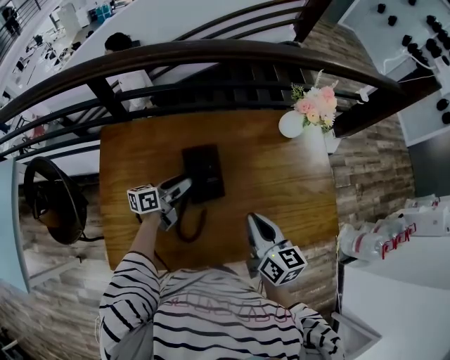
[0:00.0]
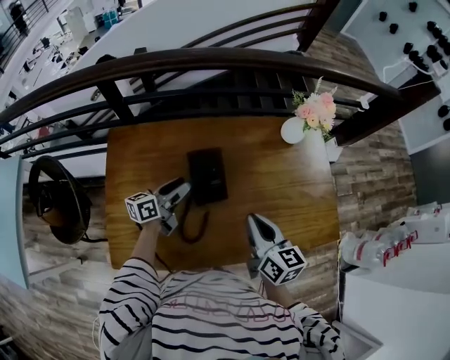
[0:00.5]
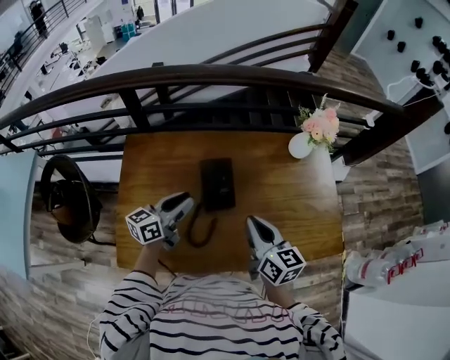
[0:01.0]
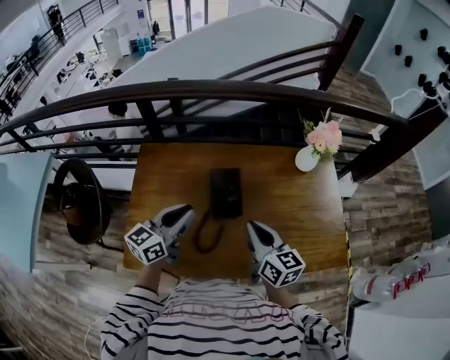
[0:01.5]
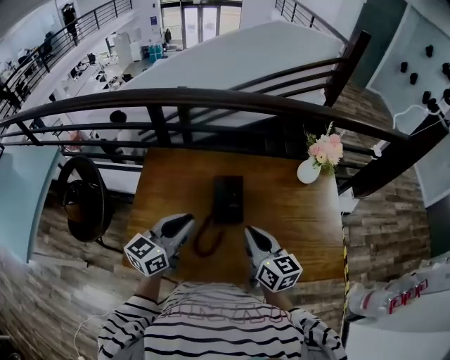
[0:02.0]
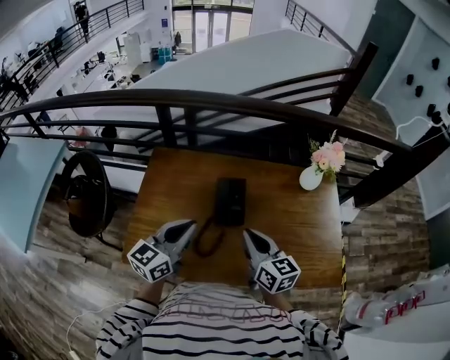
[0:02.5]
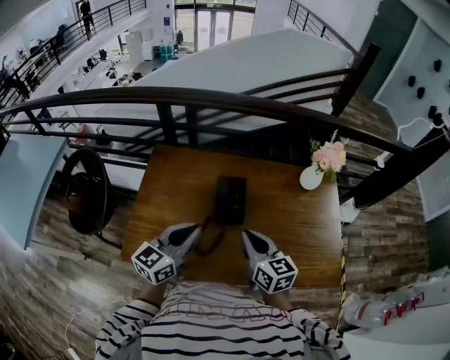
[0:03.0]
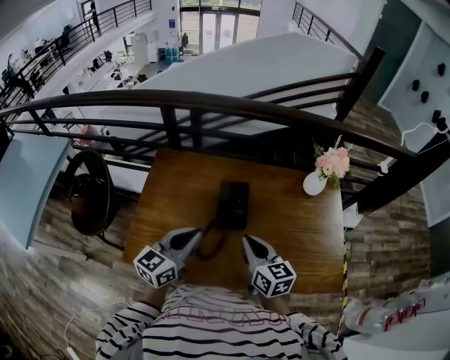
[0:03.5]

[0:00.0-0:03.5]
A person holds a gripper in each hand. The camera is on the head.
0:00.0 to 0:02.0: The left gripper moves upward and backward, roughly 30 cm, turns by approximately 40 degrees, and closes its fingers, while the right gripper travels upward and backward by approximately 10 cm.
0:02.0 to 0:03.5: The grippers make only small movements.

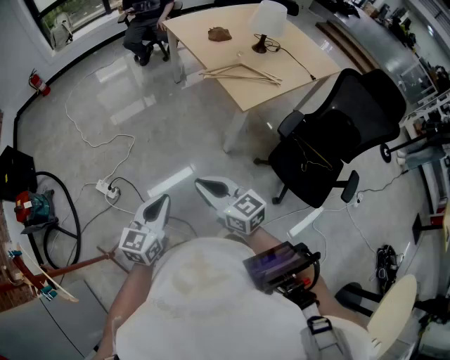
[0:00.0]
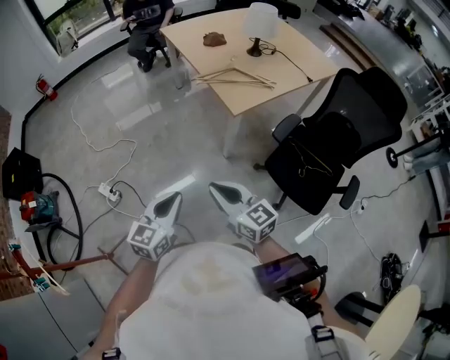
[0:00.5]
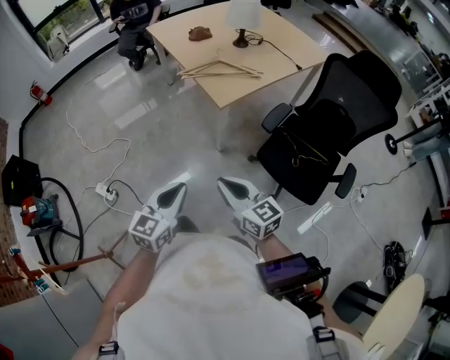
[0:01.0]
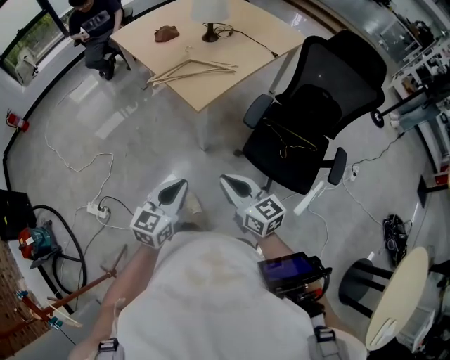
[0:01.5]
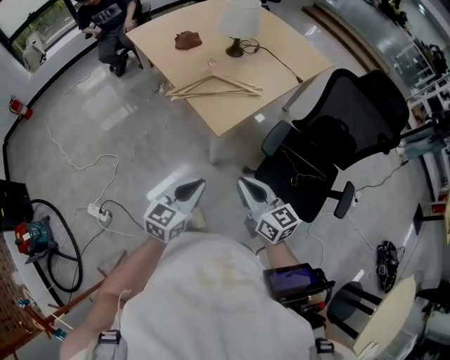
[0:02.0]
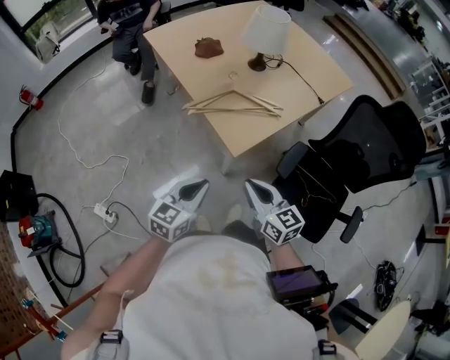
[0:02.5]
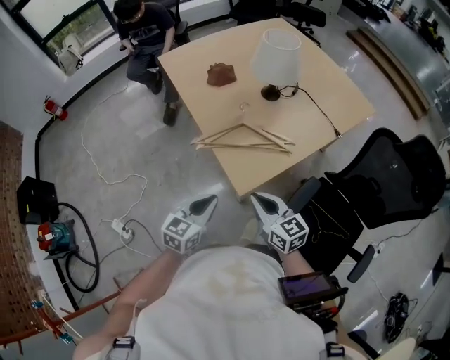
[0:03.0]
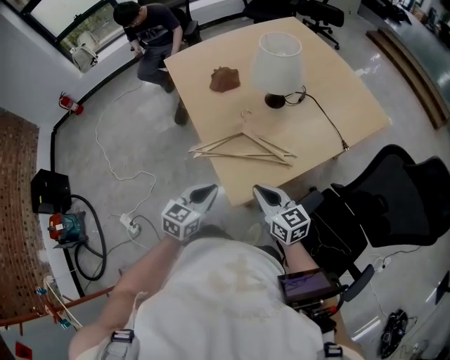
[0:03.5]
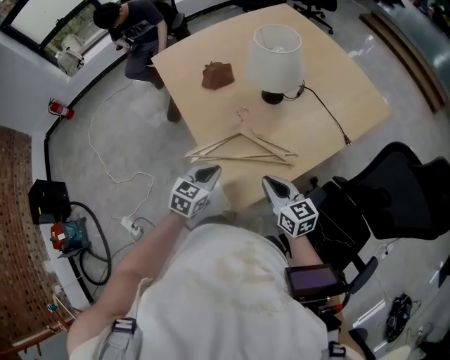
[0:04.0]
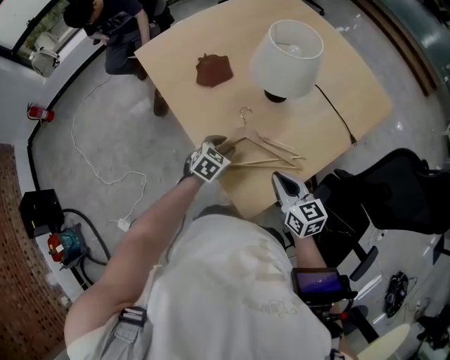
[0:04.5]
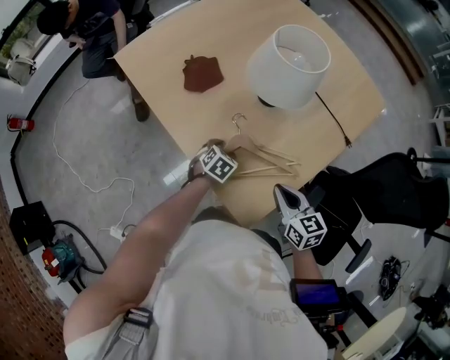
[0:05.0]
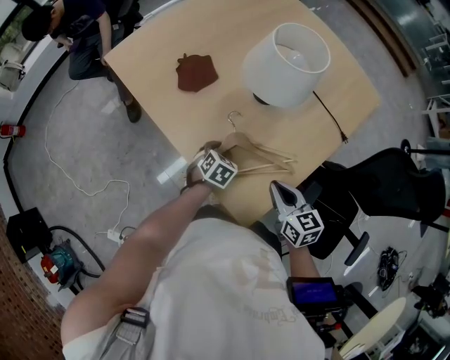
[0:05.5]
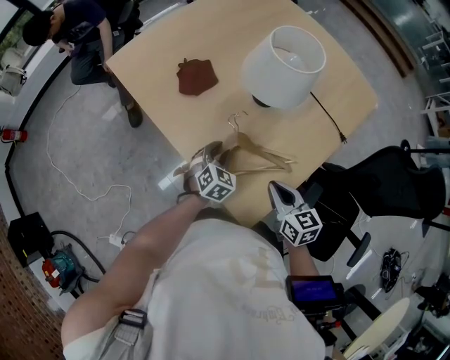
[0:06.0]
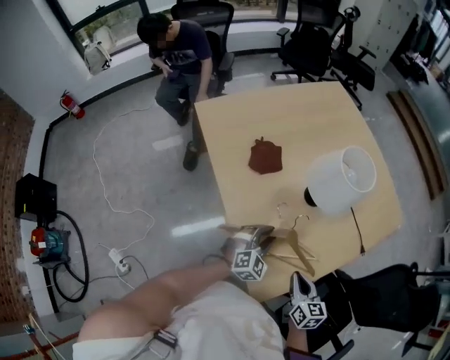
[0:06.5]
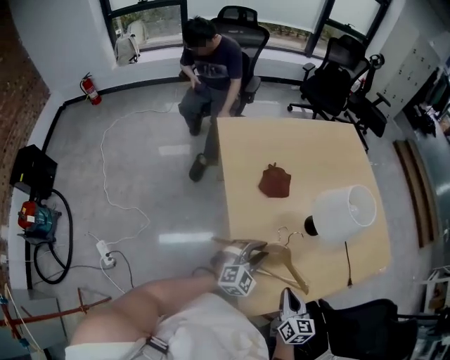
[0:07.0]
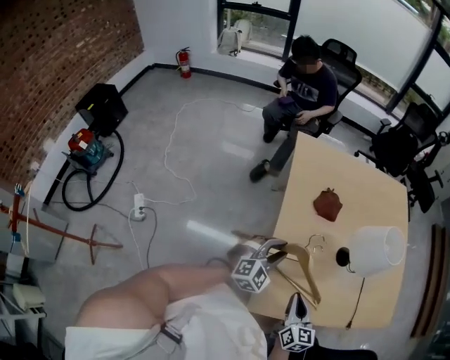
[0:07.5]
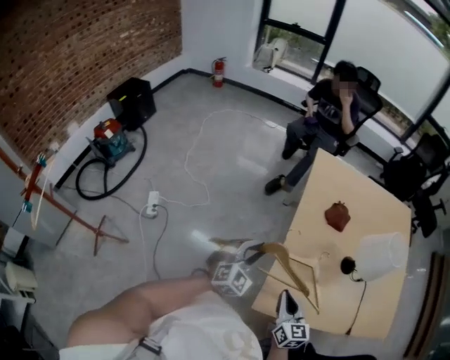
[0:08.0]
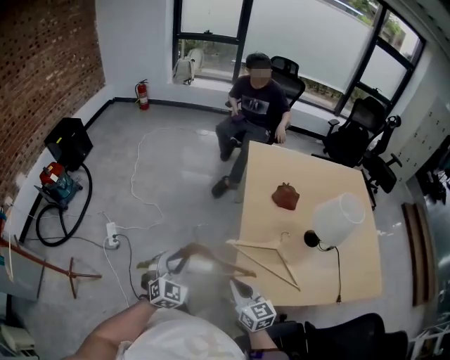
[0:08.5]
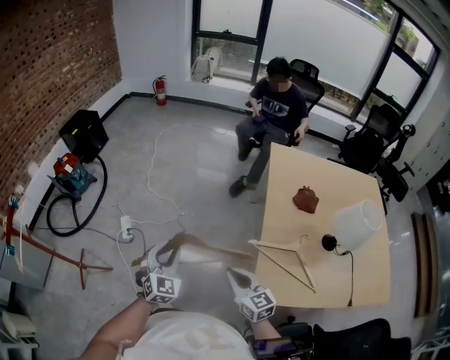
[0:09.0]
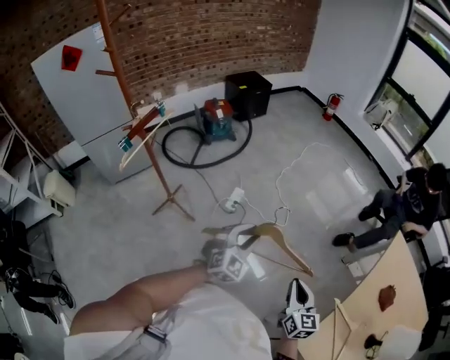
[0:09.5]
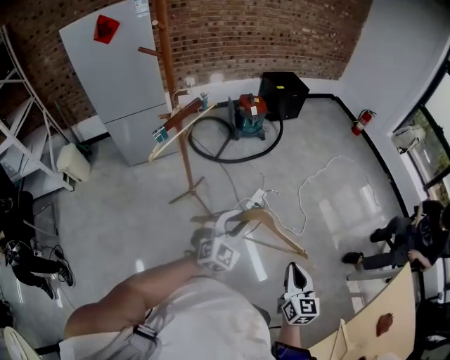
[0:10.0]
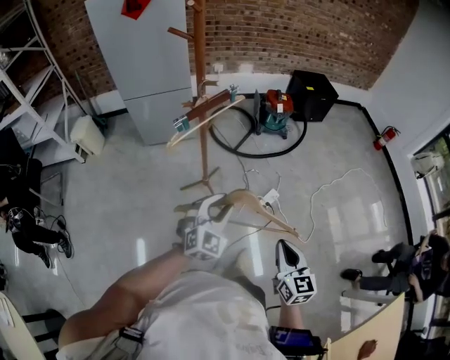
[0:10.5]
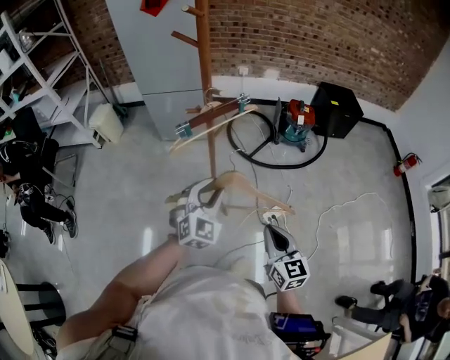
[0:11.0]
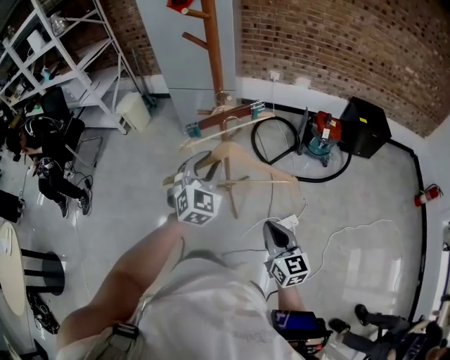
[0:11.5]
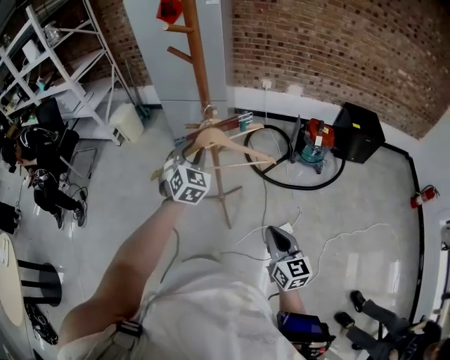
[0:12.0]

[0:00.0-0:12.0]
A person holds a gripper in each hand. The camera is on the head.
0:00.0 to 0:02.0: Both grippers travel together to the right and forward, about 30 cm. The left gripper rotates some 20 degrees. Meanwhile the right gripper swivels about 20 degrees.
0:02.0 to 0:04.0: The two grippers go some 35 cm forward. The left gripper turns by approximately 20 degrees.
0:04.0 to 0:06.0: The left gripper moves forward and downward, roughly 20 cm, swivels roughly 30 degrees, and opens its fingers; the right gripper goes some 5 cm forward, and turns by about 20 degrees.
0:06.0 to 0:08.0: The right gripper ends up about 15 cm from where it was, and changes its angle by about 50 degrees. Meanwhile the left gripper changes place by some 30 cm, and changes its angle by some 40 degrees.
0:08.0 to 0:10.0: The two grippers travel together, approximately 60 cm. The right gripper swivels some 50 degrees. The left gripper rotates roughly 60 degrees.
0:10.0 to 0:12.0: The left gripper moves roughly 40 cm, and turns by roughly 60 degrees. The right gripper changes place by approximately 35 cm, and turns by roughly 50 degrees.

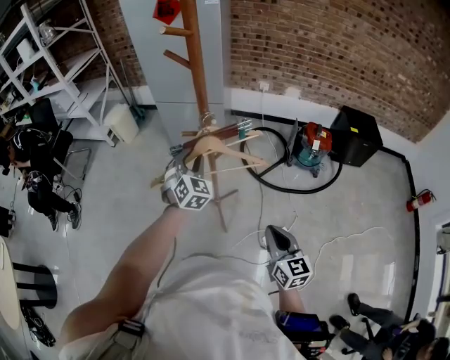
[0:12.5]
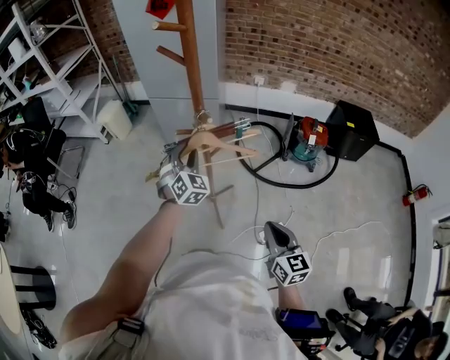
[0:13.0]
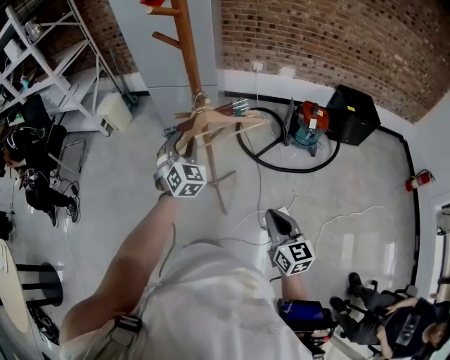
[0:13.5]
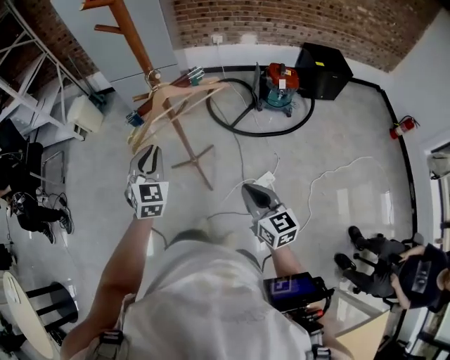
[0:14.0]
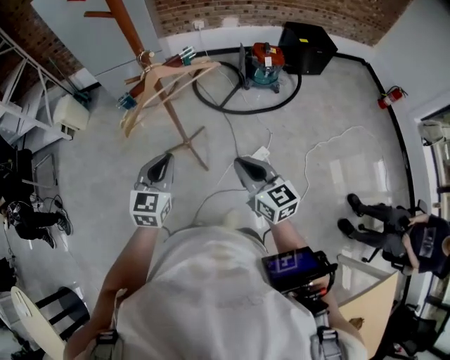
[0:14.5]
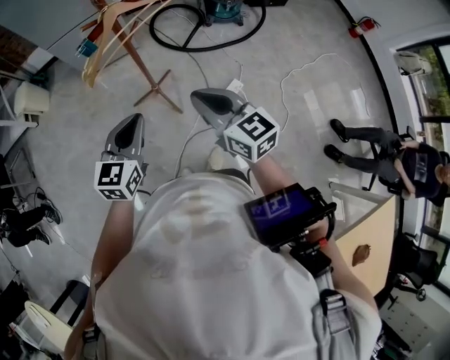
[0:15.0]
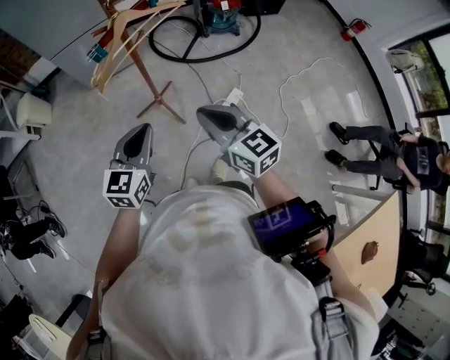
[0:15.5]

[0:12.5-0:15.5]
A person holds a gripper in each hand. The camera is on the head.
0:12.5 to 0:14.0: The left gripper travels backward by approximately 10 cm.
0:14.0 to 0:15.5: The right gripper goes roughly 15 cm to the left and backward, while the left gripper goes about 15 cm backward, and rotates some 40 degrees.

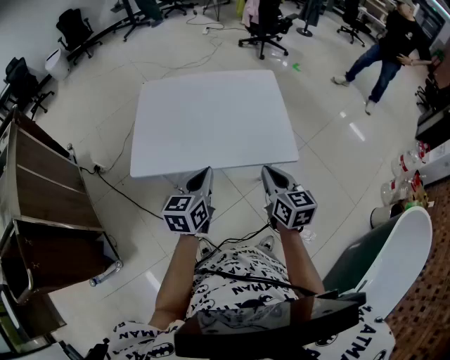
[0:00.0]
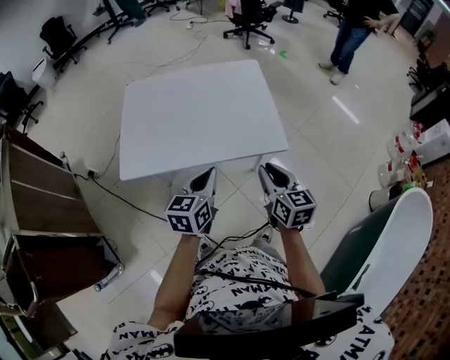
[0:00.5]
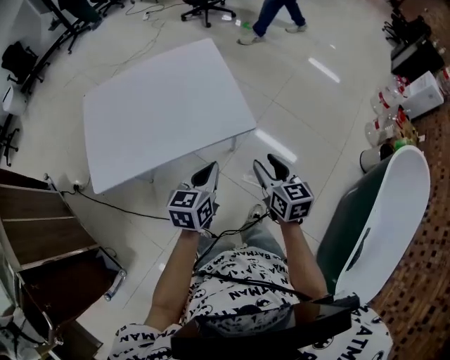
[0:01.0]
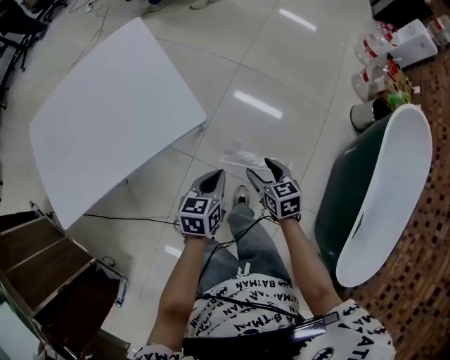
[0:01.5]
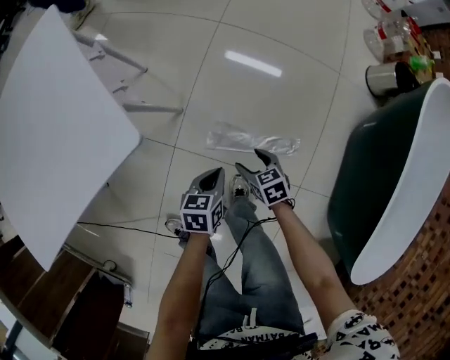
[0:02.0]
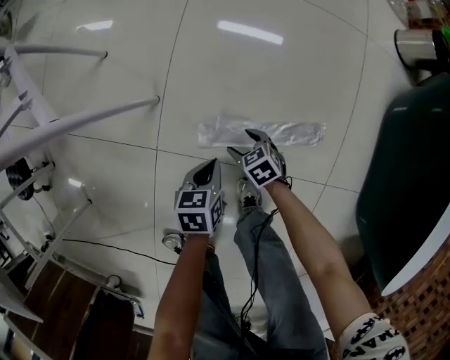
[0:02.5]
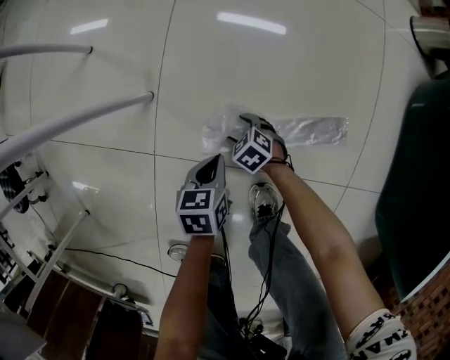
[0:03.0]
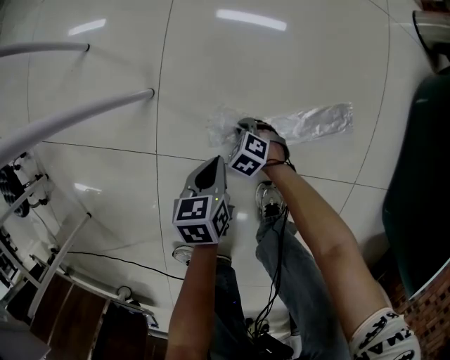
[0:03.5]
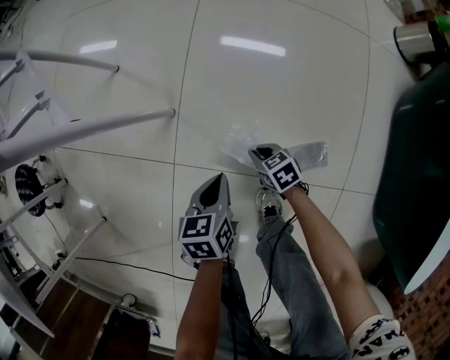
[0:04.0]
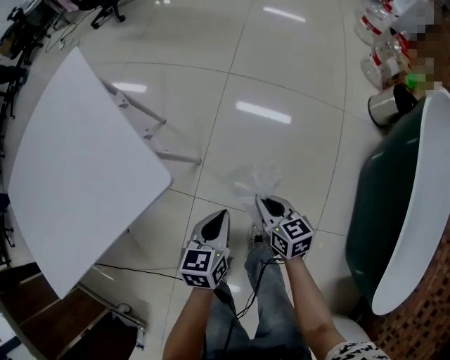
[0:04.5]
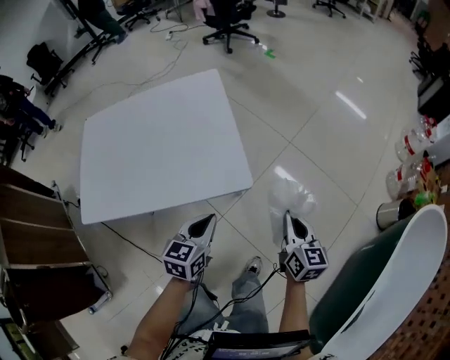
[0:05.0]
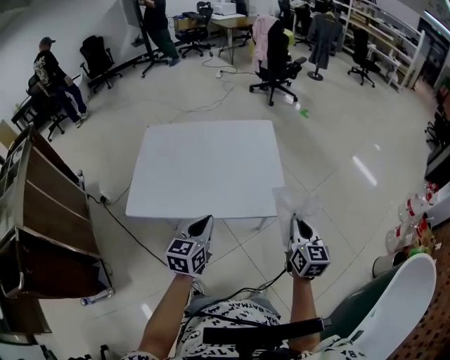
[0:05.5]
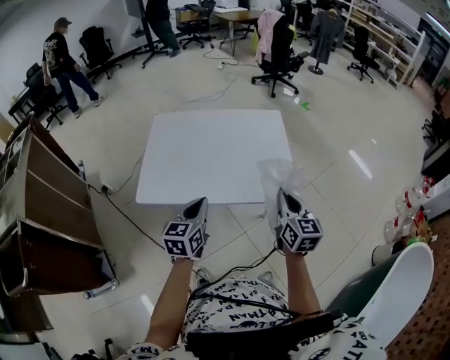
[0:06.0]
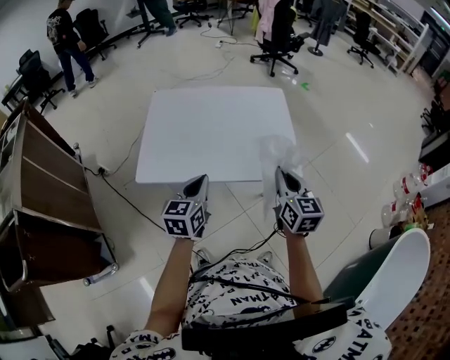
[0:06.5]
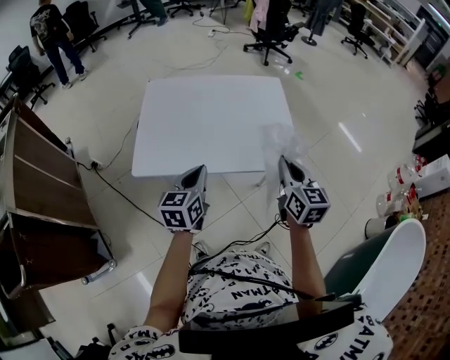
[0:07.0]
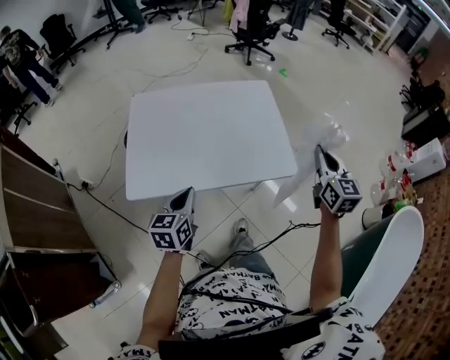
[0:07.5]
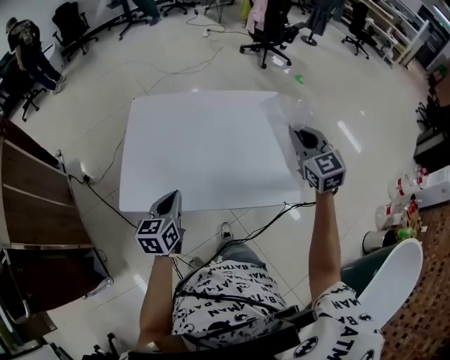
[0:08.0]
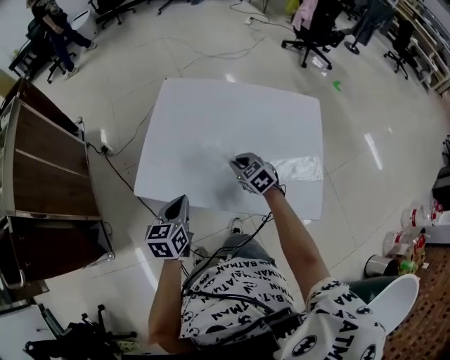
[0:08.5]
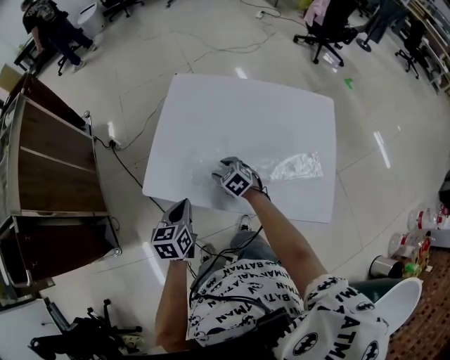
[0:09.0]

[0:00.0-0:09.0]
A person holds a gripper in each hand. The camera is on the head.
0:00.0 to 0:02.0: Both grippers move downward, approximately 50 cm. The left gripper tilts its fingers roughly 30 degrees downward, while the right gripper tilts its fingers approximately 40 degrees downward, and opens.
0:02.0 to 0:04.5: The left gripper goes downward and returns, about 35 cm each way, while the right gripper goes downward and returns, approximately 40 cm each way, swivels about 30 degrees, and closes up.
0:04.5 to 0:07.0: The left gripper changes place by about 60 cm, and swivels roughly 40 degrees. Meanwhile the right gripper is displaced upward by some 50 cm, and swivels approximately 40 degrees.
0:07.0 to 0:09.0: The left gripper changes place by approximately 20 cm, and changes its angle by approximately 30 degrees. The right gripper shifts by roughly 50 cm, tilts its fingers about 40 degrees downward, and opens up.
